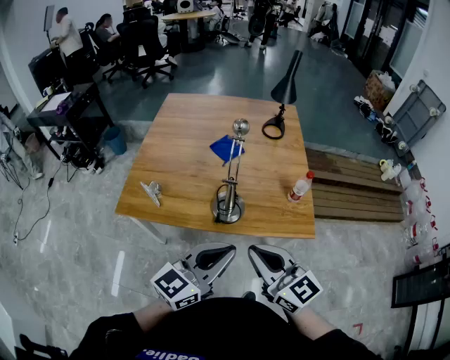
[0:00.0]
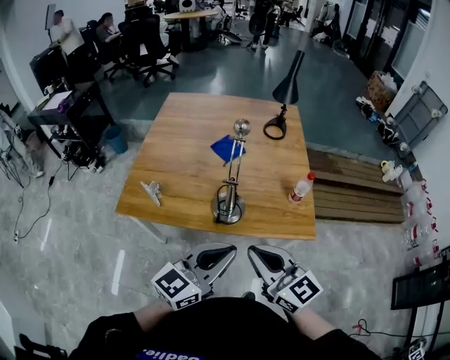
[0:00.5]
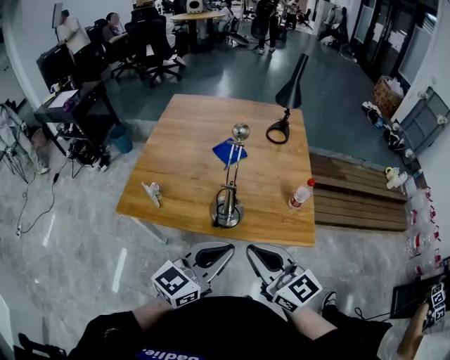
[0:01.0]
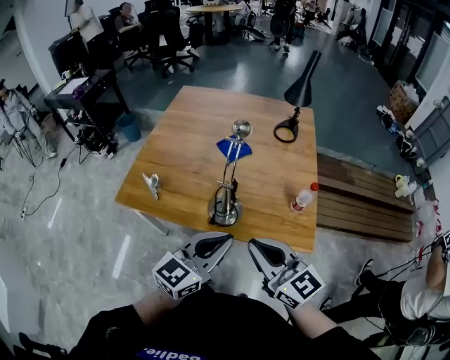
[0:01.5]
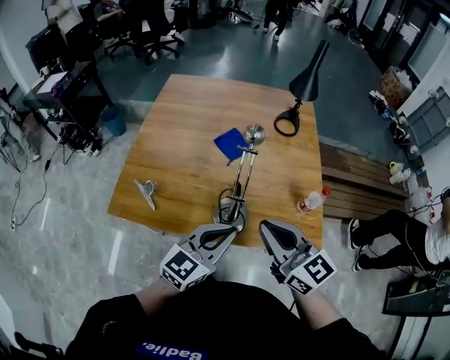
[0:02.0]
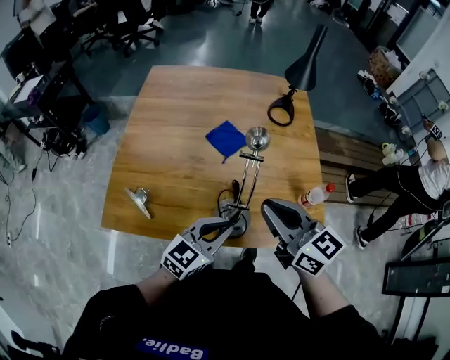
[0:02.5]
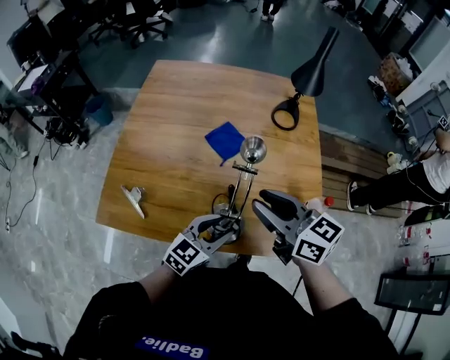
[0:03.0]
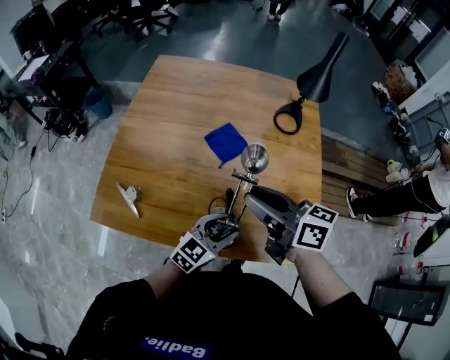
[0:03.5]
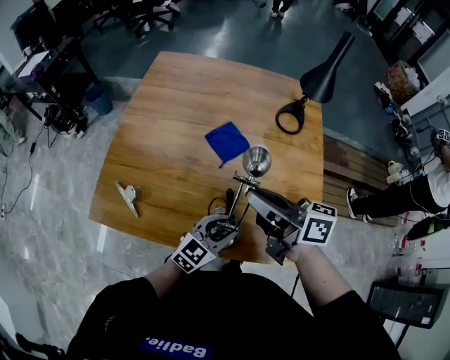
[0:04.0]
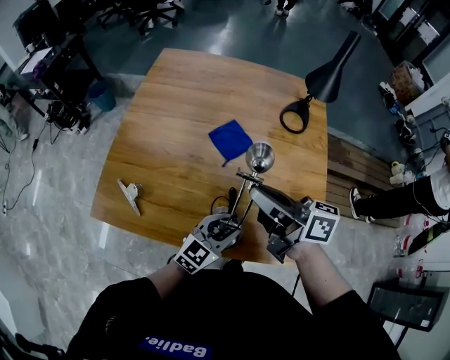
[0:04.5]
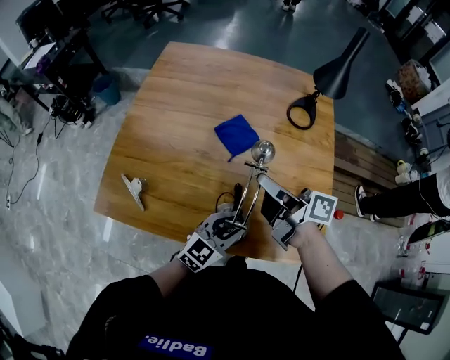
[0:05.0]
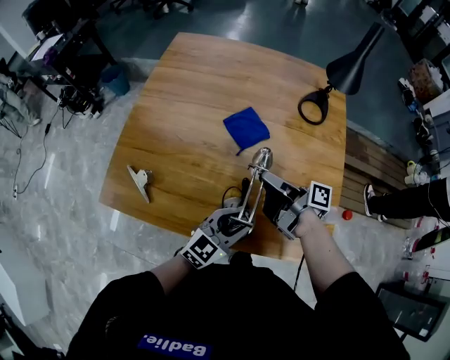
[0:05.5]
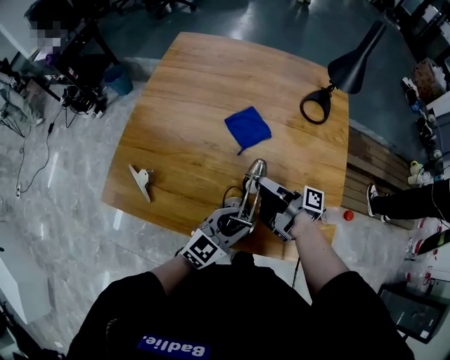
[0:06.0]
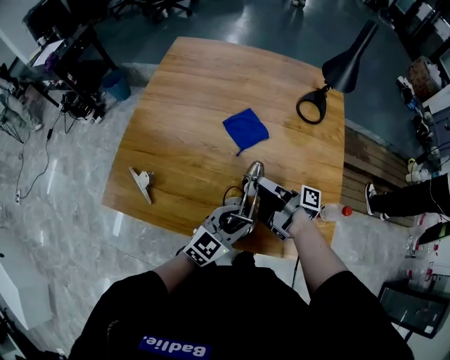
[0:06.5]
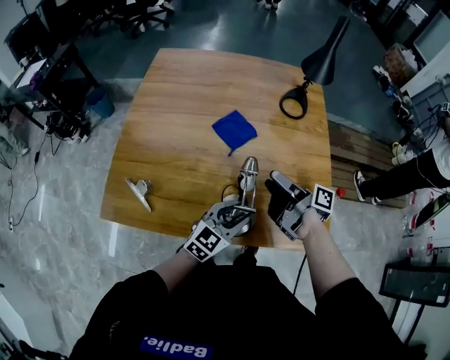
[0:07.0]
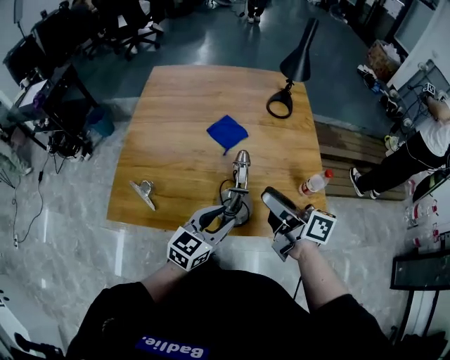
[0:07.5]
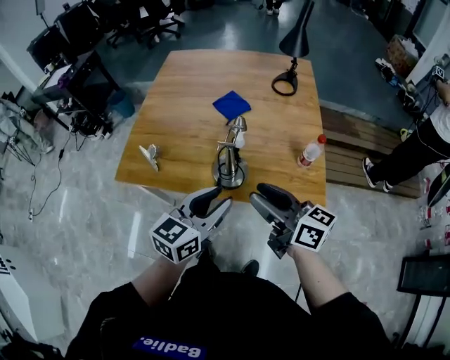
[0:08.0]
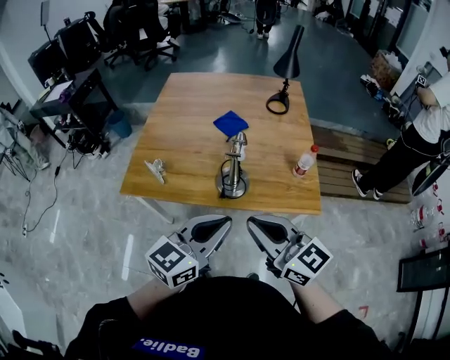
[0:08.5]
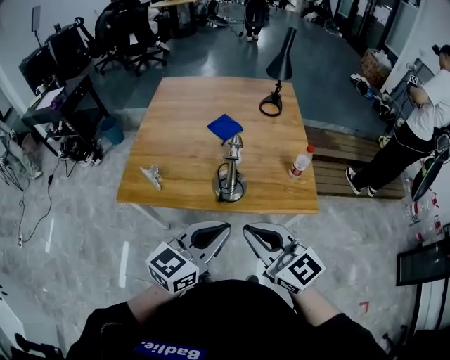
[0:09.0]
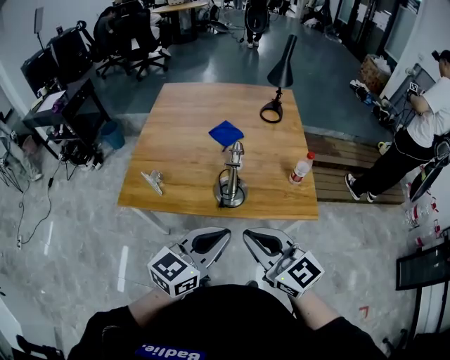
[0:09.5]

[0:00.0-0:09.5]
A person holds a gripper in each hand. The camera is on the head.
0:00.0 to 0:02.0: The right gripper travels forward by roughly 15 cm, while the left gripper travels forward and downward by roughly 15 cm.
0:02.0 to 0:04.0: The right gripper heads forward, covering about 20 cm, and rotates approximately 40 degrees. Meanwhile the left gripper is displaced downward and forward by roughly 20 cm, and opens.
0:04.0 to 0:05.5: The right gripper travels downward by about 15 cm, and twists about 40 degrees clockwise, seen from behind.
0:05.5 to 0:07.5: The left gripper travels backward, upward and to the left by about 10 cm; the right gripper travels backward and upward by approximately 20 cm, changes its angle by roughly 40 degrees, and opens its fingers.
0:07.5 to 0:09.5: The left gripper shifts approximately 25 cm backward and upward, and closes up, while the right gripper is displaced backward by some 25 cm, rotates around the line of its fingers by approximately 50 degrees, counterclockwise from behind, and closes.

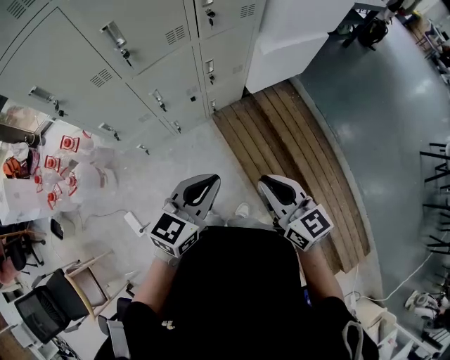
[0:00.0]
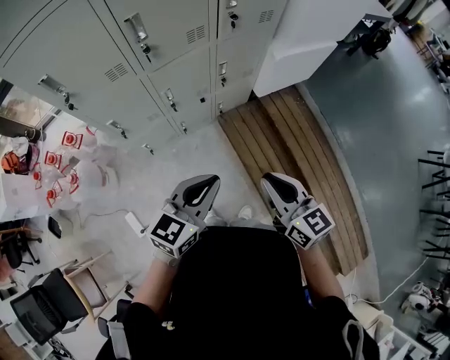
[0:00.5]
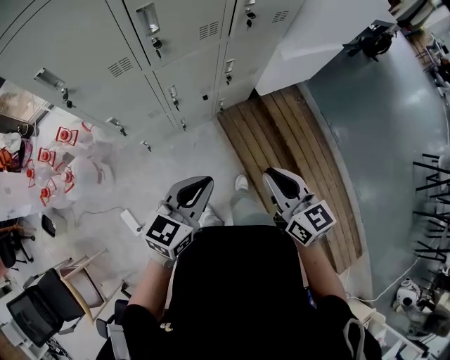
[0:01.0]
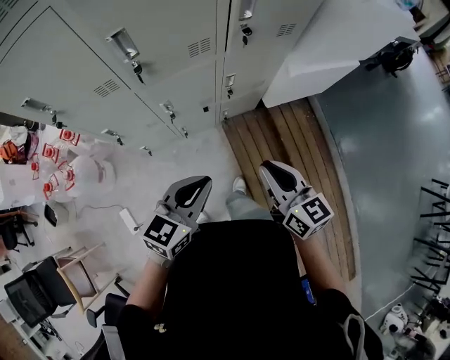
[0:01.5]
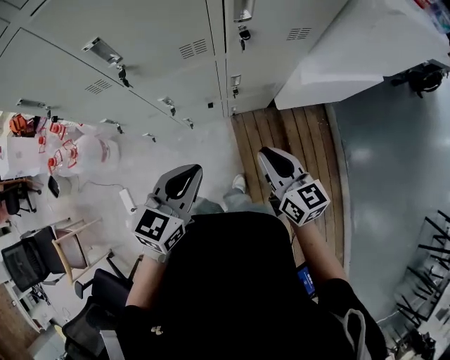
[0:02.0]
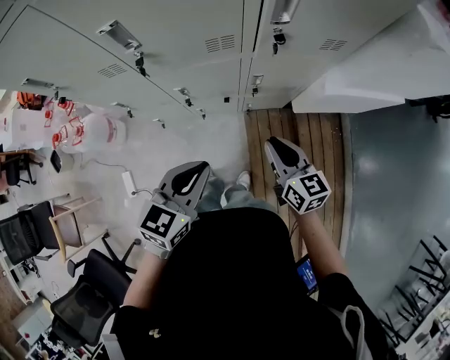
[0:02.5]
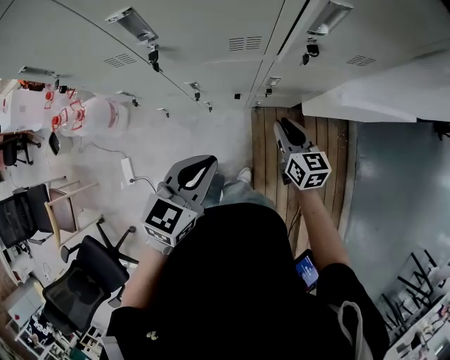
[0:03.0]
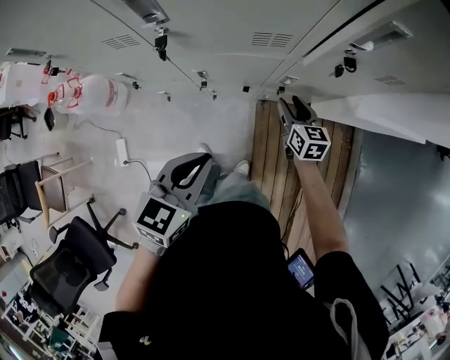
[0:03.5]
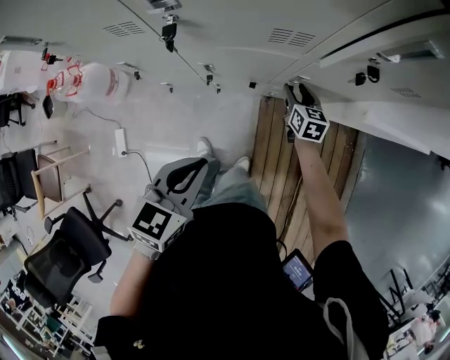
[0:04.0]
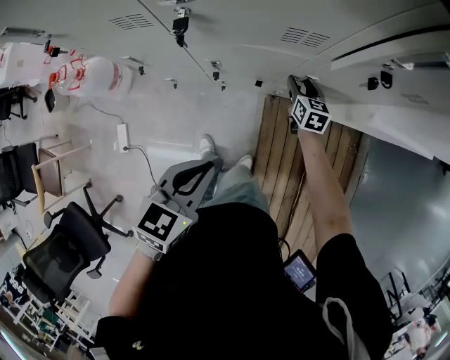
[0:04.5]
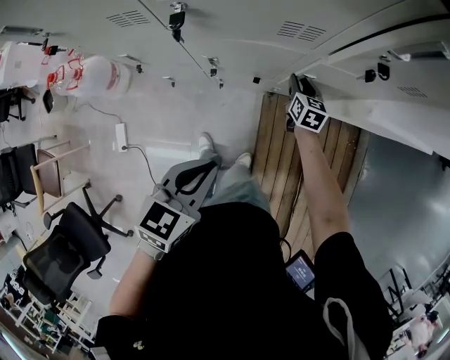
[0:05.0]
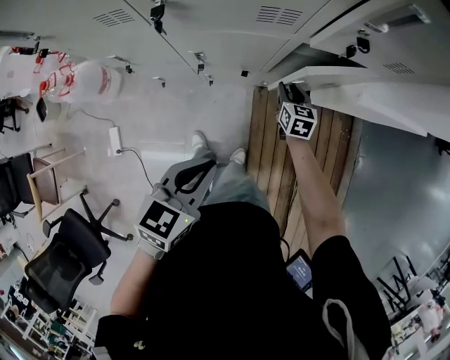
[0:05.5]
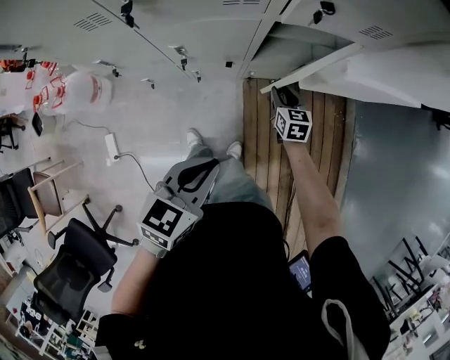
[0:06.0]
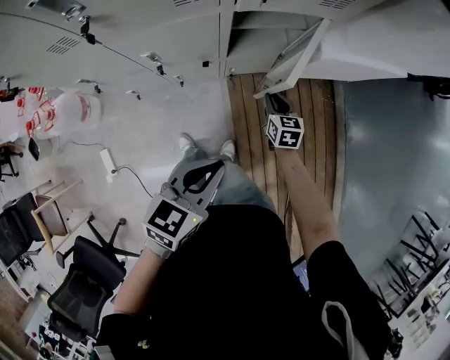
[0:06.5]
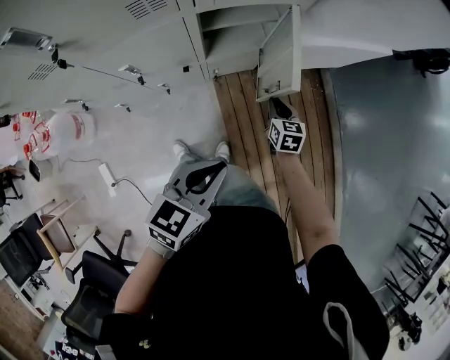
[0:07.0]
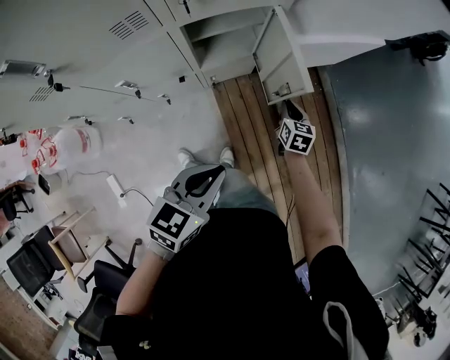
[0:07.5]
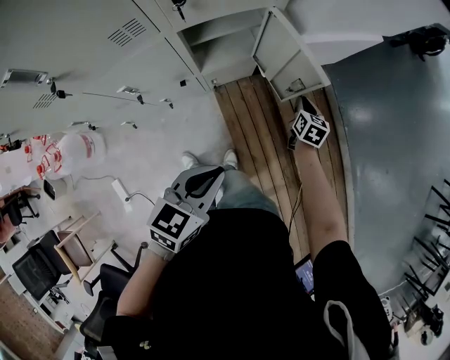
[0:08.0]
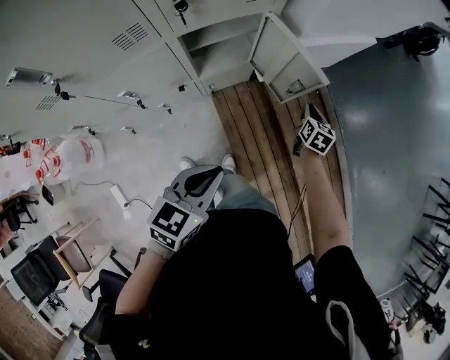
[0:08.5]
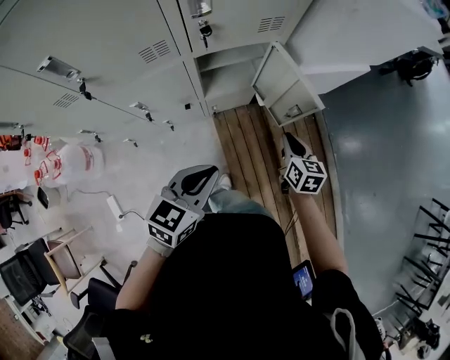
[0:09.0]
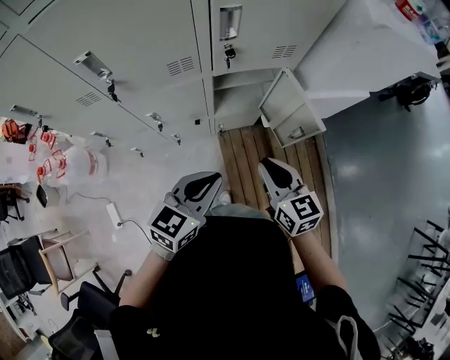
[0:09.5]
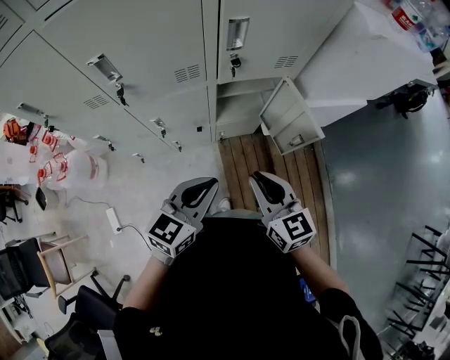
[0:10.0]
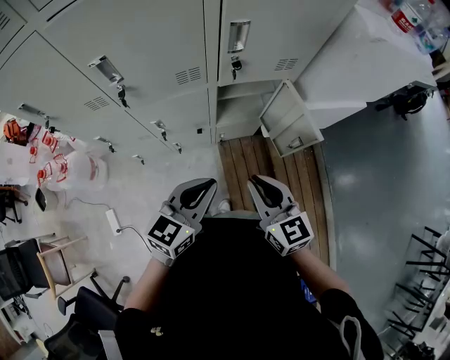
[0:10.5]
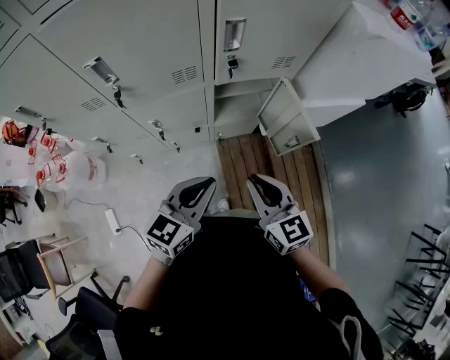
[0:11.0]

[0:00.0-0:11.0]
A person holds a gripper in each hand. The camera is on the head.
0:00.0 to 0:02.0: The two grippers go some 25 cm forward. The left gripper changes its angle by approximately 20 degrees.
0:02.0 to 0:03.5: The right gripper moves forward and downward, roughly 30 cm, and opens up, while the left gripper travels downward, to the left and forward by roughly 10 cm.
0:03.5 to 0:05.5: The right gripper travels downward by roughly 10 cm; the left gripper ends up approximately 5 cm from where it was.
0:05.5 to 0:07.5: The left gripper moves about 15 cm, and swivels approximately 20 degrees. The right gripper shifts by some 30 cm, and rotates some 30 degrees.
0:07.5 to 0:09.0: The left gripper changes place by approximately 5 cm. The right gripper is displaced upward by roughly 15 cm.
0:09.0 to 0:11.0: The left gripper heads upward, covering about 5 cm; the right gripper shifts approximately 25 cm upward, to the left and backward, and rotates some 30 degrees.

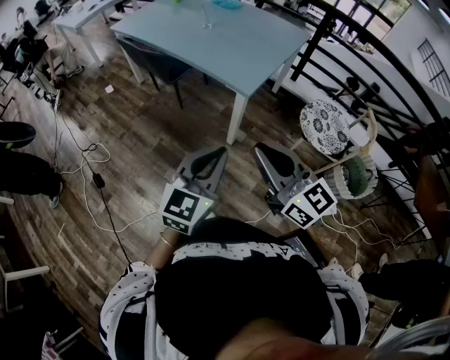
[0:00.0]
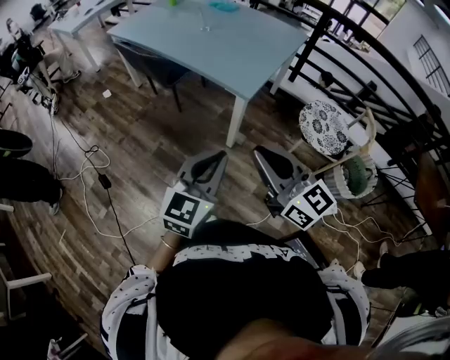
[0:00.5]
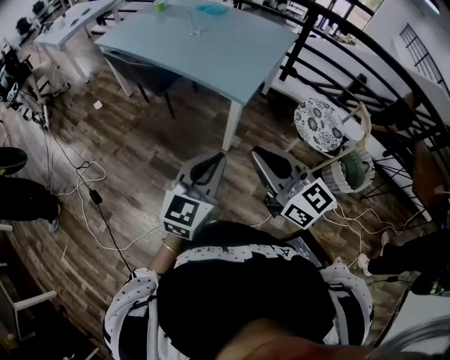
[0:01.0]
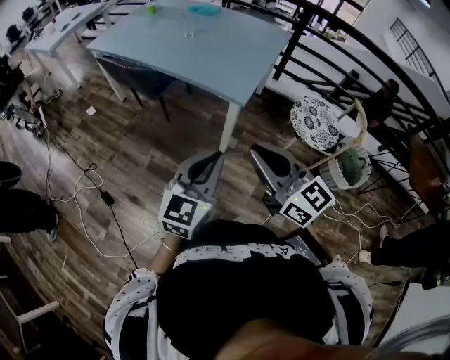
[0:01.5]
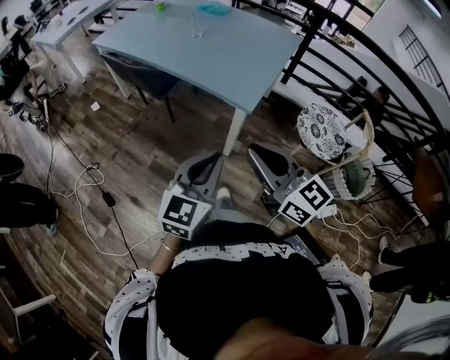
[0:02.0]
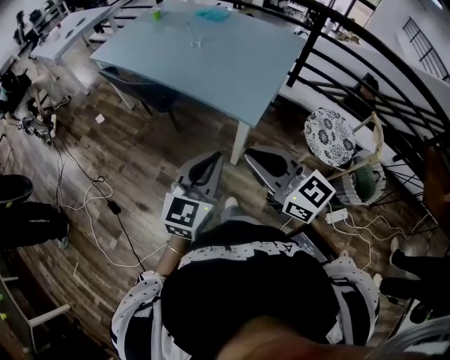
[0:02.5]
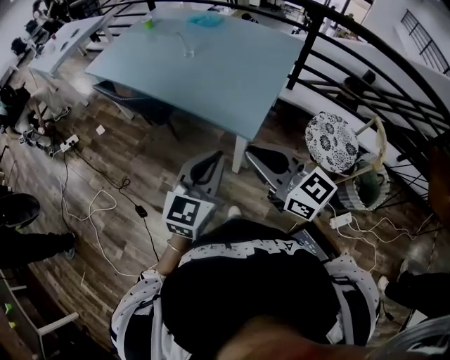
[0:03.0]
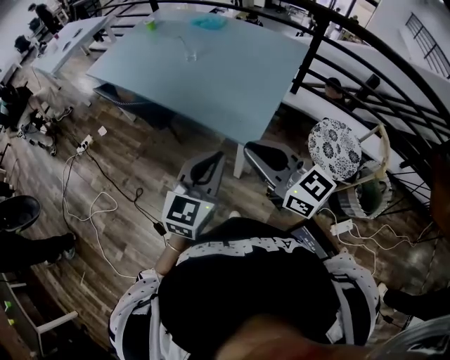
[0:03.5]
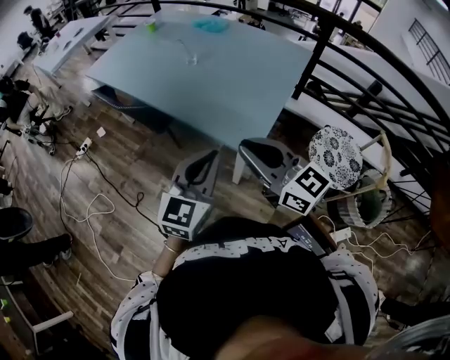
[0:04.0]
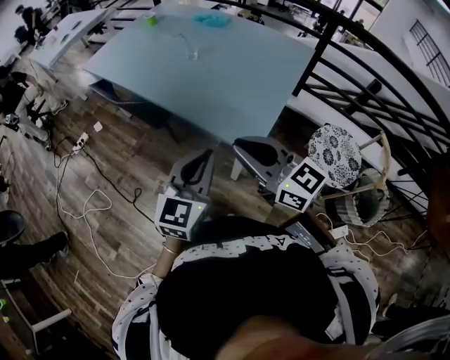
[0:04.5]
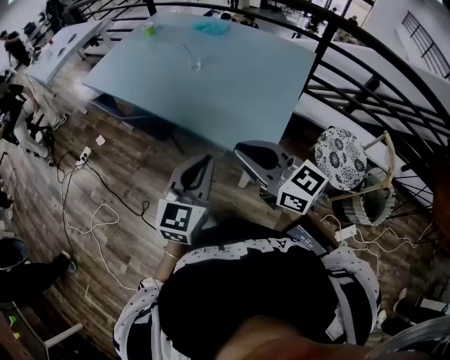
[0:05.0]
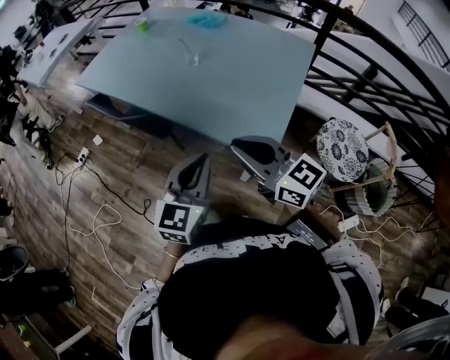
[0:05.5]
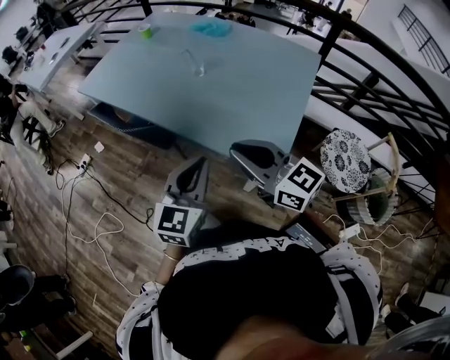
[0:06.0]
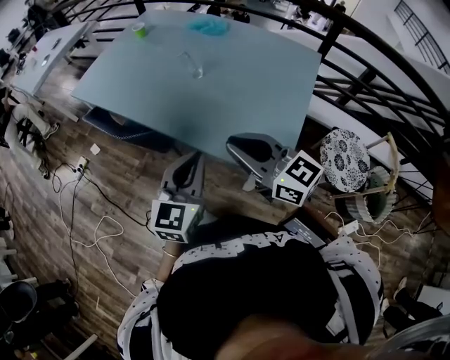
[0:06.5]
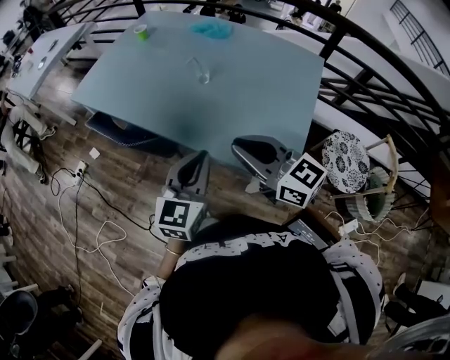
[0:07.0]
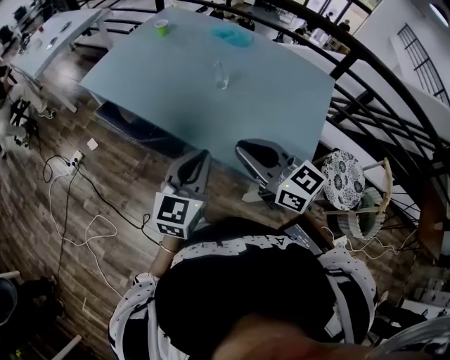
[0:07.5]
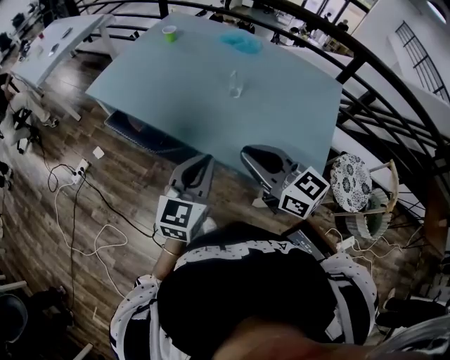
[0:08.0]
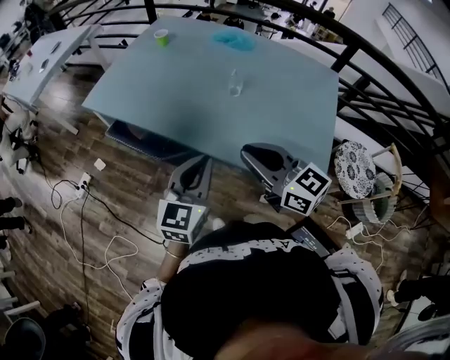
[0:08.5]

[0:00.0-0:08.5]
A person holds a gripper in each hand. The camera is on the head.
0:00.0 to 0:02.0: The left gripper goes roughly 10 cm forward. The right gripper moves forward and to the left, some 10 cm.
0:02.0 to 0:04.0: The grippers both shift forward by approximately 20 cm.
0:04.0 to 0:06.5: Both grippers travel together forward and to the left, roughly 20 cm.
0:06.5 to 0:08.5: Both grippers travel together to the left and forward, roughly 20 cm.
